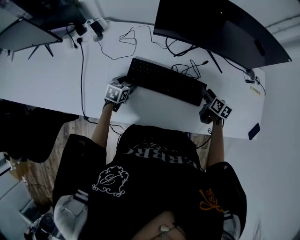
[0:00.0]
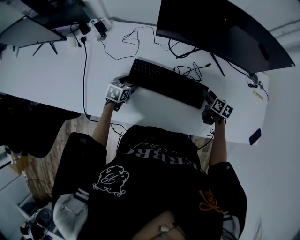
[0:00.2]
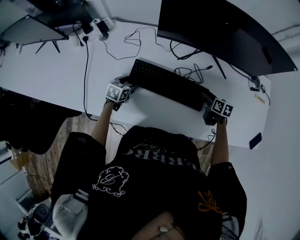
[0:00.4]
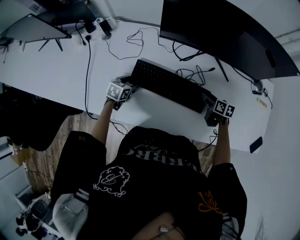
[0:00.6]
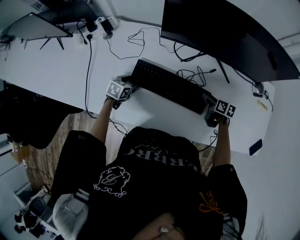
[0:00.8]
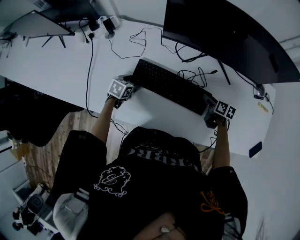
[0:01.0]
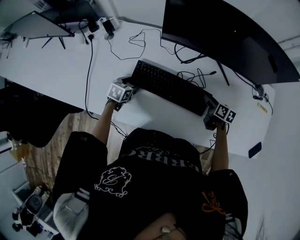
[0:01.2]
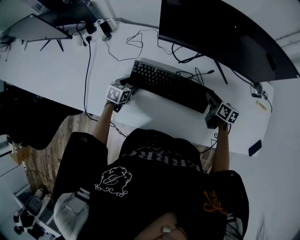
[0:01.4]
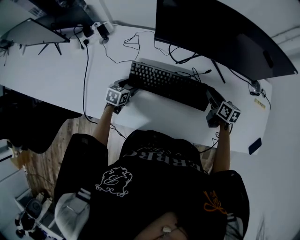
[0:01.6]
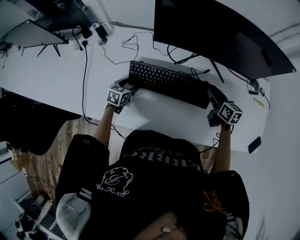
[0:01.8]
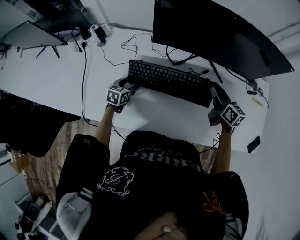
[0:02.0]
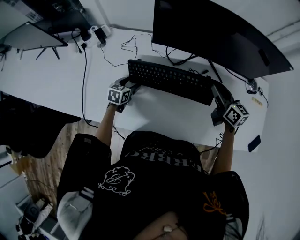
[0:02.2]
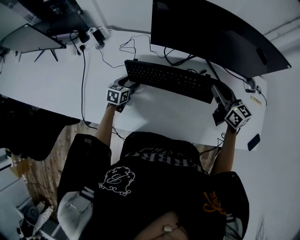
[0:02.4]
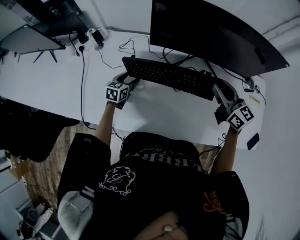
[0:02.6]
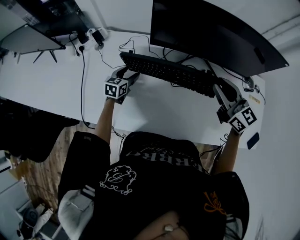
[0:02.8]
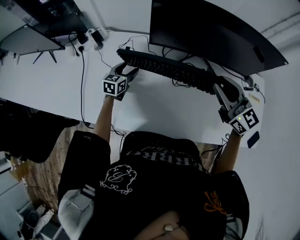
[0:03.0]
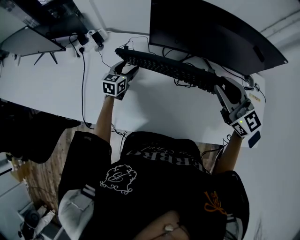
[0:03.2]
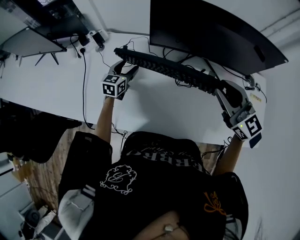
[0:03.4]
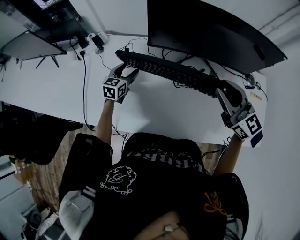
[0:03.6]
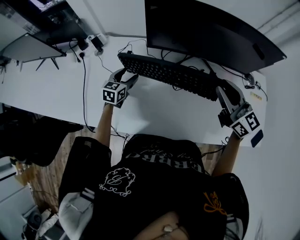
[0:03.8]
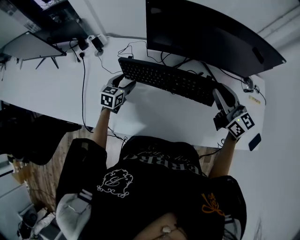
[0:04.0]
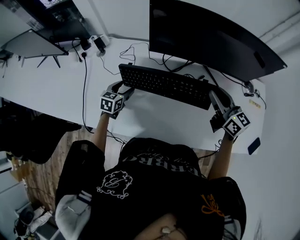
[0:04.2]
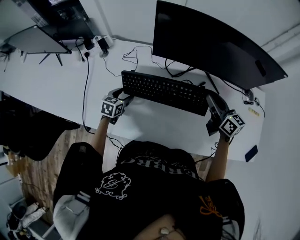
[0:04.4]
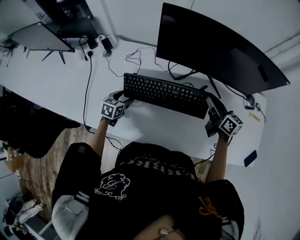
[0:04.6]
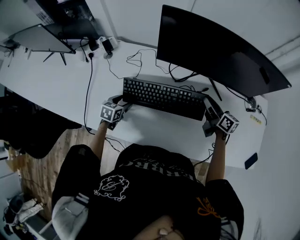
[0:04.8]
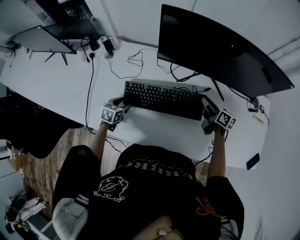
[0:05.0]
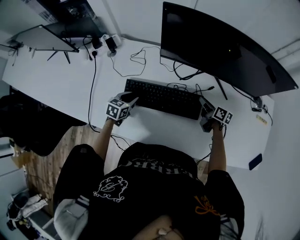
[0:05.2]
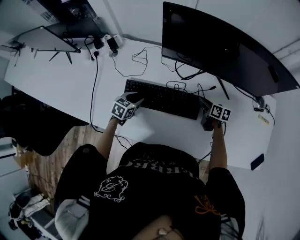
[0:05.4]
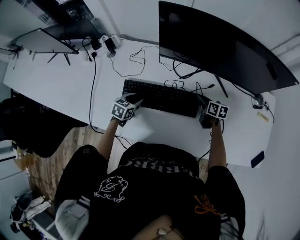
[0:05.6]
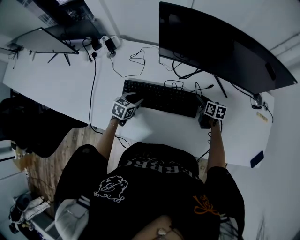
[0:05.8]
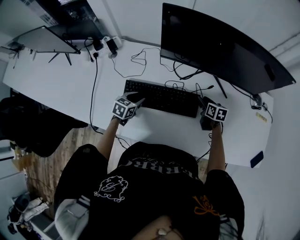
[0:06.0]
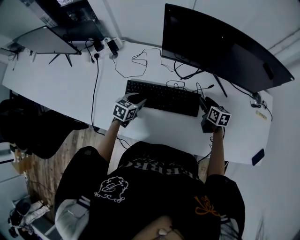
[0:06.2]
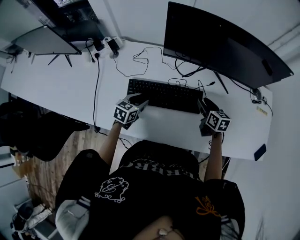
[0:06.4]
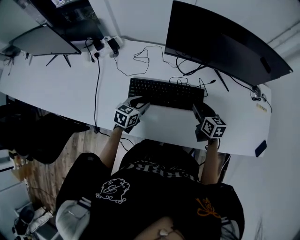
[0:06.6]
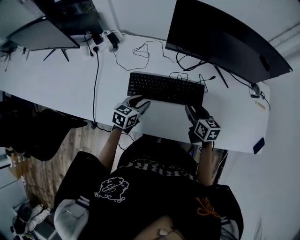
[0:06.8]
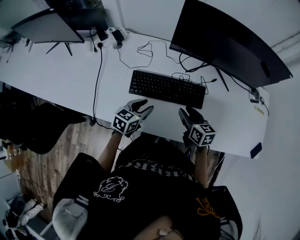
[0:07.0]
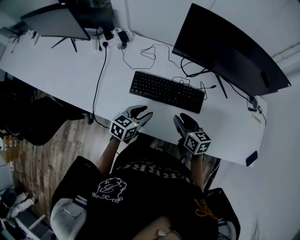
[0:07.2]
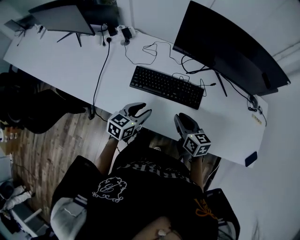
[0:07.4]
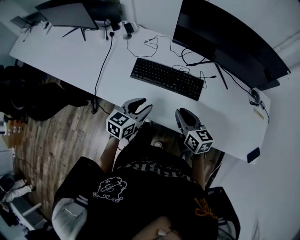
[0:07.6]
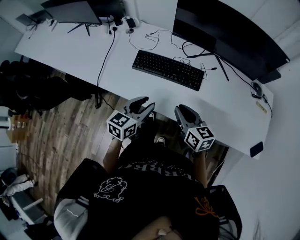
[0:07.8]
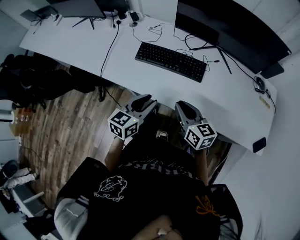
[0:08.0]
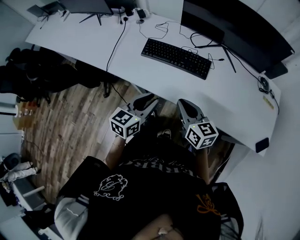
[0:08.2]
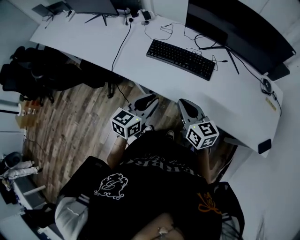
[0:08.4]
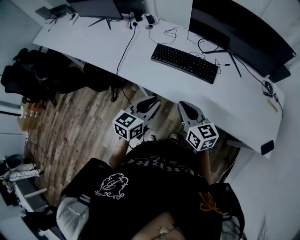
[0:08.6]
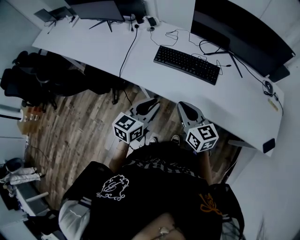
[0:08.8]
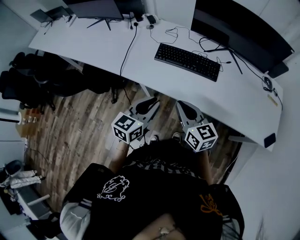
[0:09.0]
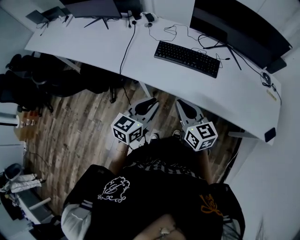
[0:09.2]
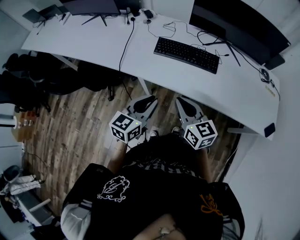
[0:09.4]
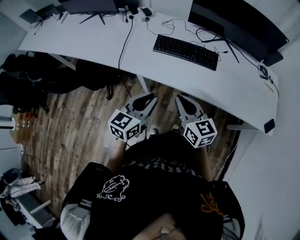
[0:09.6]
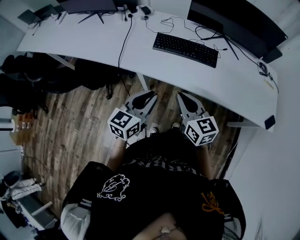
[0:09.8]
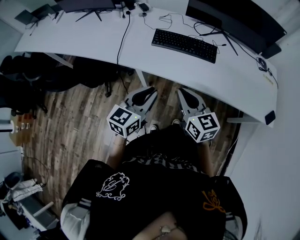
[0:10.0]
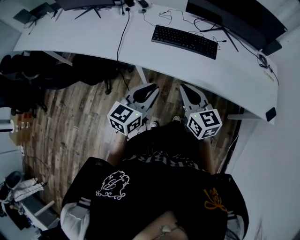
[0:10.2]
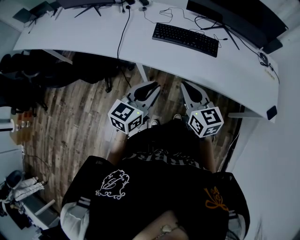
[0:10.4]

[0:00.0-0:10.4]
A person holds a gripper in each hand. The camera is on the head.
0:00.0 to 0:01.4: The grippers make only small movements.
0:01.4 to 0:03.0: The left gripper heads forward and upward, covering roughly 15 cm, and rotates some 20 degrees; the right gripper travels upward by roughly 25 cm, and rolls counterclockwise, seen from behind, by some 50 degrees.
0:03.0 to 0:04.4: The right gripper is displaced downward by roughly 10 cm, and turns by some 30 degrees. Meanwhile the left gripper heads backward, covering some 10 cm.
0:04.4 to 0:06.0: The left gripper closes up; the right gripper goes about 20 cm downward, and points its fingers approximately 30 degrees further downward.
0:06.0 to 0:07.4: The right gripper travels backward, to the left and upward by approximately 30 cm, and changes its angle by about 20 degrees, while the left gripper travels backward and upward by some 20 cm.
0:07.4 to 0:09.0: The right gripper shifts some 25 cm backward, to the left and upward; the left gripper heads backward and upward, covering roughly 25 cm.
0:09.0 to 0:10.4: The right gripper moves roughly 5 cm. The left gripper shifts approximately 5 cm backward.

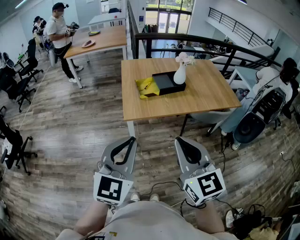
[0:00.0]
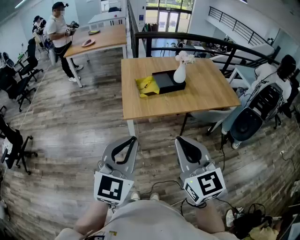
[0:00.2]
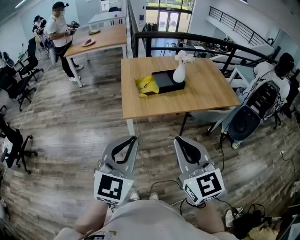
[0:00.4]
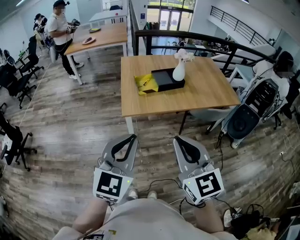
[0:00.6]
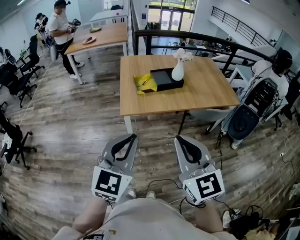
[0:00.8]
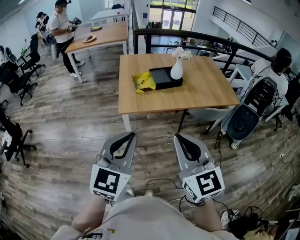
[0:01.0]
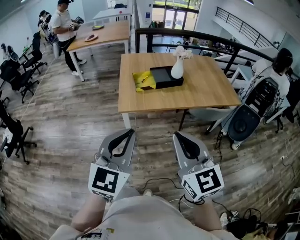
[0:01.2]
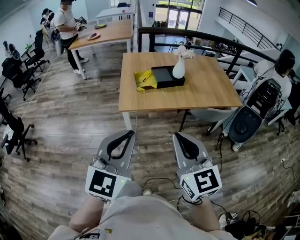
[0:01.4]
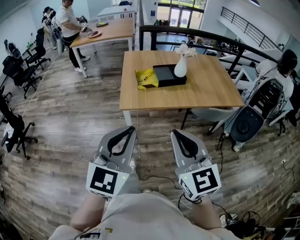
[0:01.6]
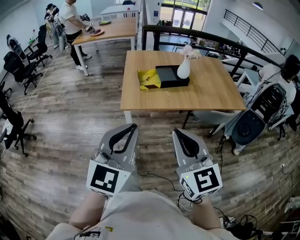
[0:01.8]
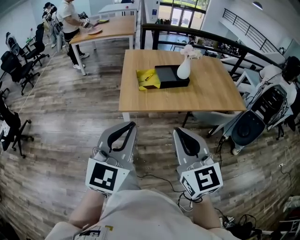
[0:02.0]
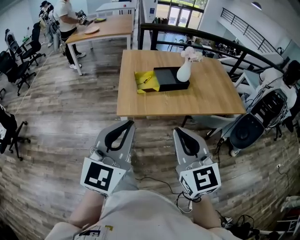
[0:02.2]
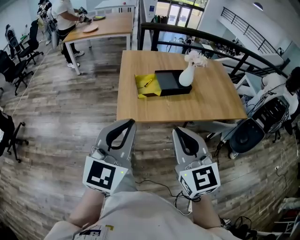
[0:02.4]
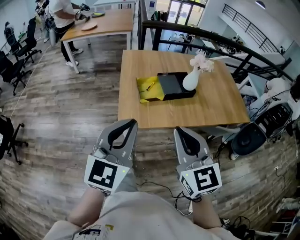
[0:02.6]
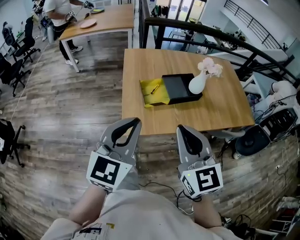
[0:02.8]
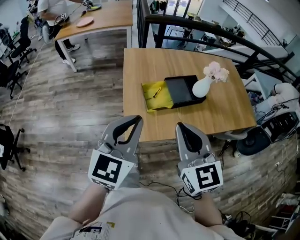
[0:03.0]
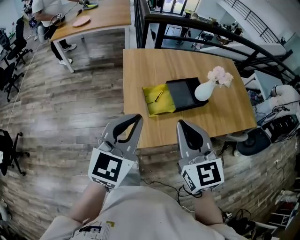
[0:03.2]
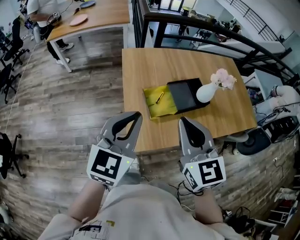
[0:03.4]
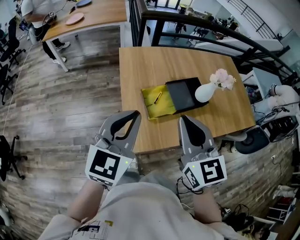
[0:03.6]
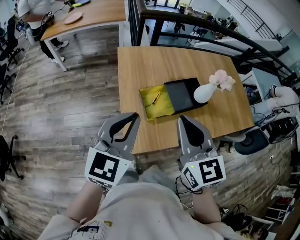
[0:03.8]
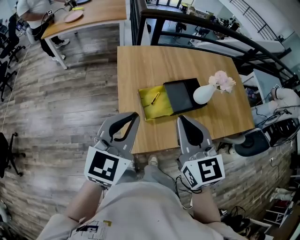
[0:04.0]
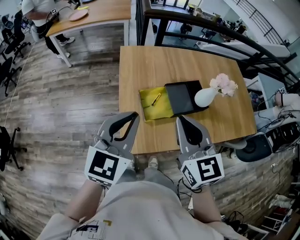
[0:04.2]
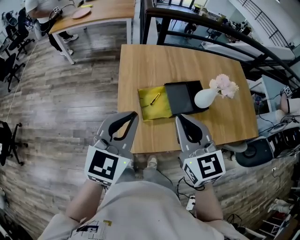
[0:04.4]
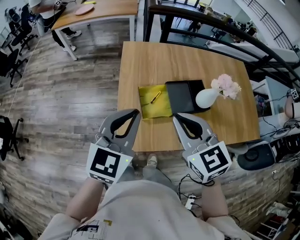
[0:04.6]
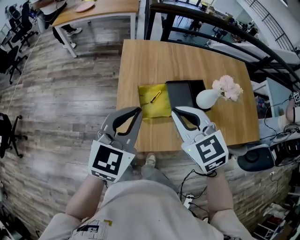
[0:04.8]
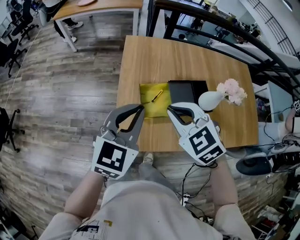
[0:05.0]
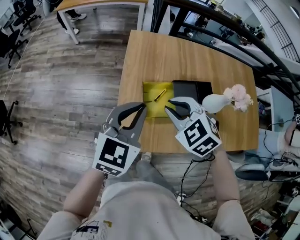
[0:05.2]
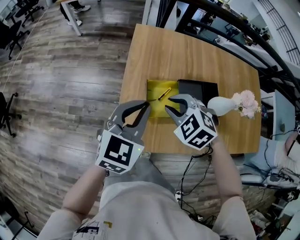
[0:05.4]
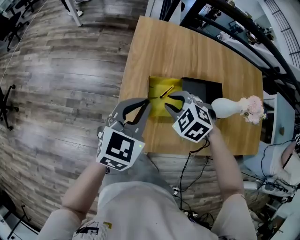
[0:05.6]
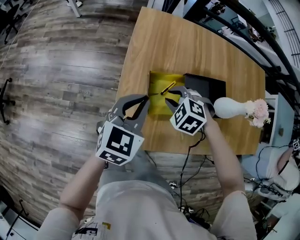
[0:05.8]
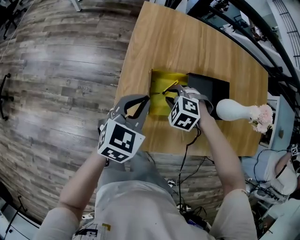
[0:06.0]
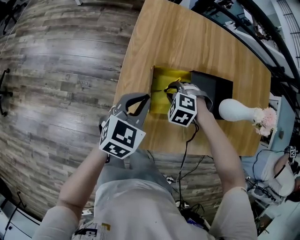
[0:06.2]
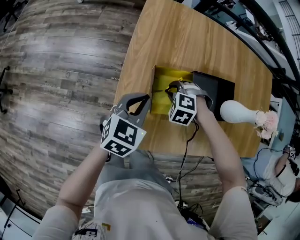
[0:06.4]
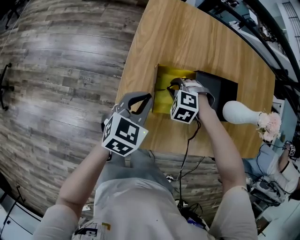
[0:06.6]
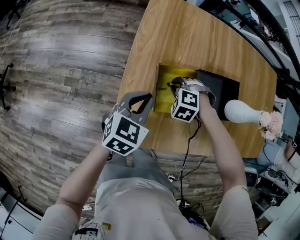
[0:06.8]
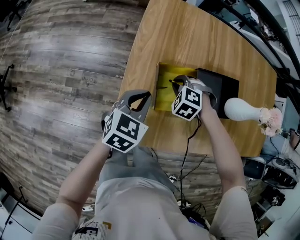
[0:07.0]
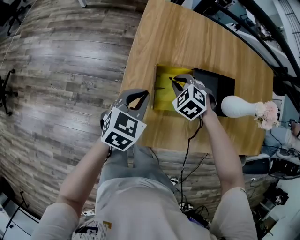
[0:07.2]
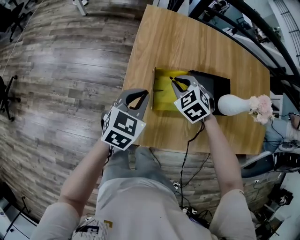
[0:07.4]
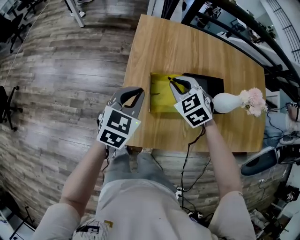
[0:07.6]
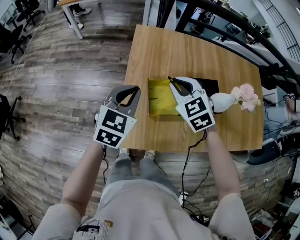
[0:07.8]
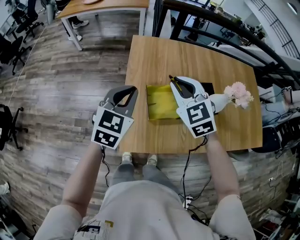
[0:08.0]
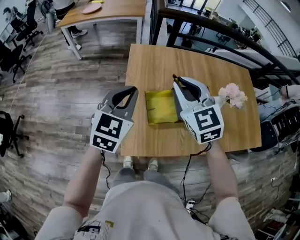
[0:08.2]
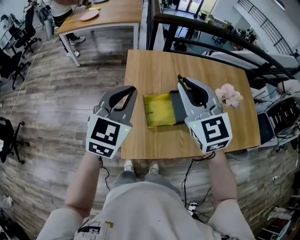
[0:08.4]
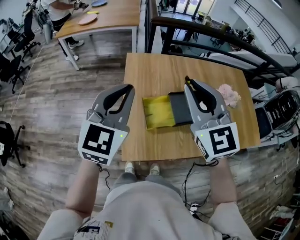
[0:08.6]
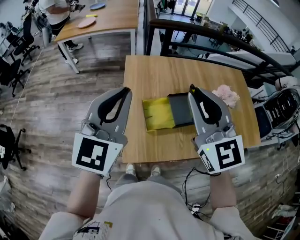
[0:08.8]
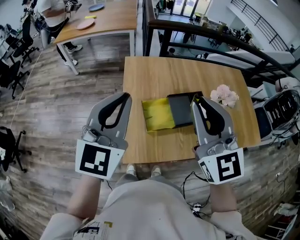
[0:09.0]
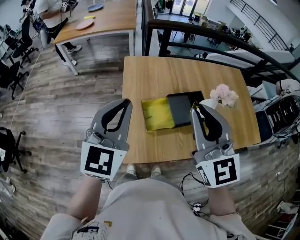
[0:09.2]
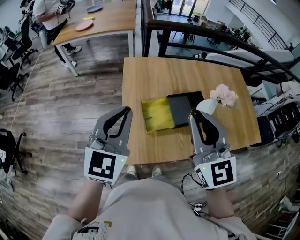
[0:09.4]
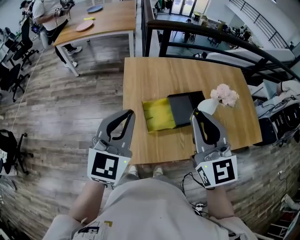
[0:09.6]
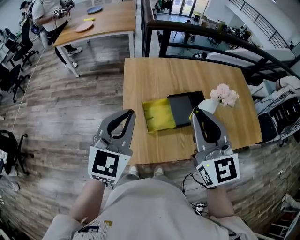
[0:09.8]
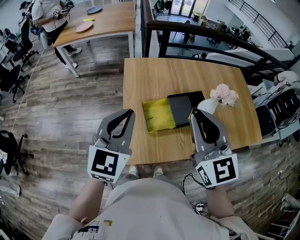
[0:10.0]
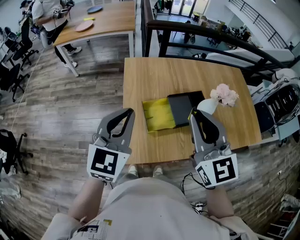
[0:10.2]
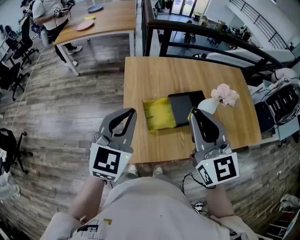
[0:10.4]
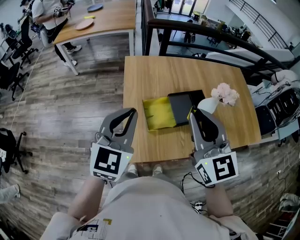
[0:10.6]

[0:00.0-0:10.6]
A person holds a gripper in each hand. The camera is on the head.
0:00.0 to 0:01.6: The grippers both shift to the right by about 5 cm.
0:01.6 to 0:03.0: The two grippers travel together, forward, some 40 cm.
0:03.0 to 0:04.6: The grippers both shift forward by about 15 cm. The right gripper changes its angle by about 20 degrees.
0:04.6 to 0:06.0: Both grippers travel together downward and forward, roughly 35 cm. The right gripper tilts its fingers approximately 50 degrees downward, and opens its fingers.
0:06.0 to 0:07.6: The left gripper moves some 5 cm. Meanwhile the right gripper shifts roughly 15 cm upward, and swivels approximately 40 degrees.
0:07.6 to 0:09.0: The right gripper is displaced upward and backward by roughly 40 cm, and points its fingers about 50 degrees further upward; the left gripper is displaced upward by roughly 30 cm, and changes its angle by roughly 30 degrees.
0:09.0 to 0:10.6: The left gripper goes some 5 cm downward. The right gripper ends up some 5 cm from where it was.

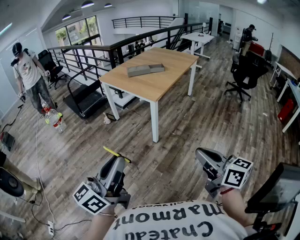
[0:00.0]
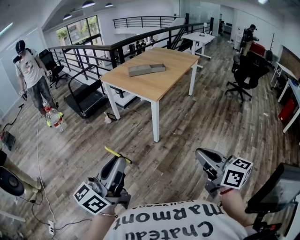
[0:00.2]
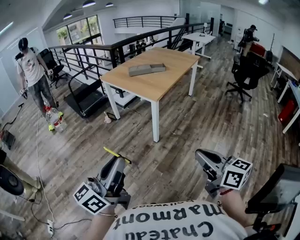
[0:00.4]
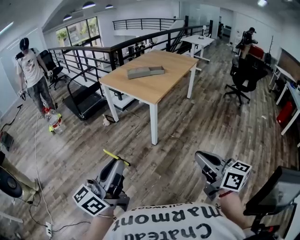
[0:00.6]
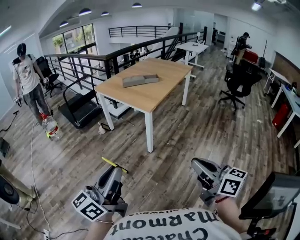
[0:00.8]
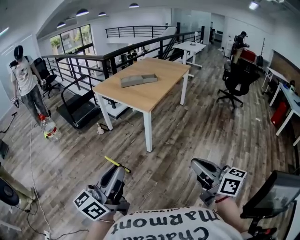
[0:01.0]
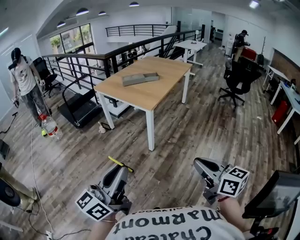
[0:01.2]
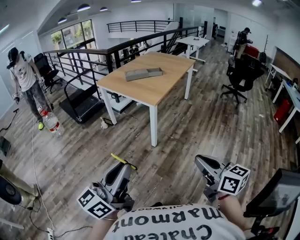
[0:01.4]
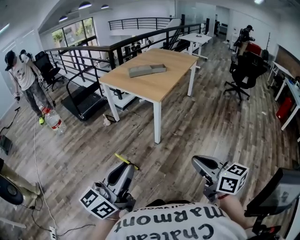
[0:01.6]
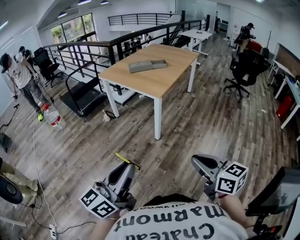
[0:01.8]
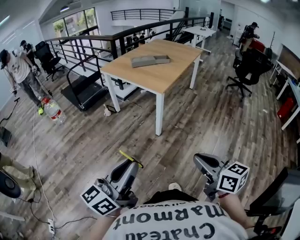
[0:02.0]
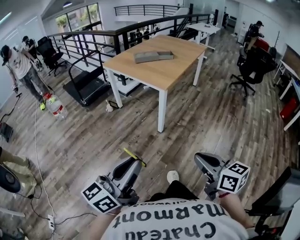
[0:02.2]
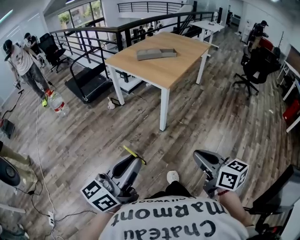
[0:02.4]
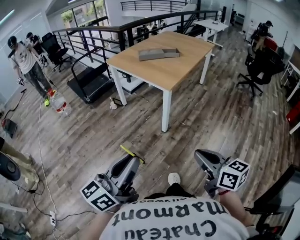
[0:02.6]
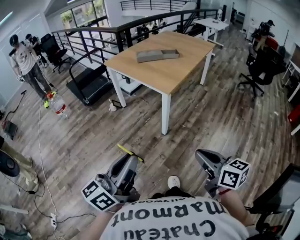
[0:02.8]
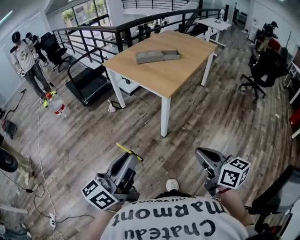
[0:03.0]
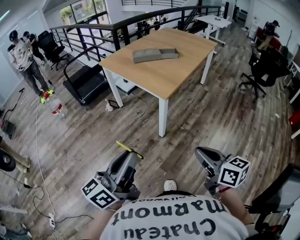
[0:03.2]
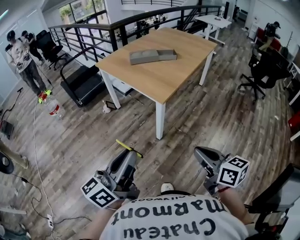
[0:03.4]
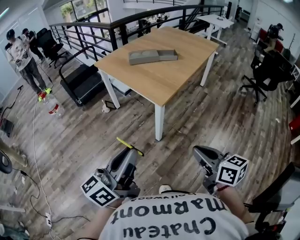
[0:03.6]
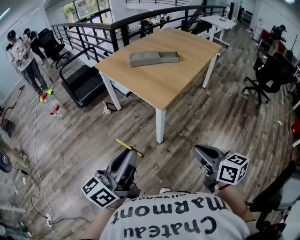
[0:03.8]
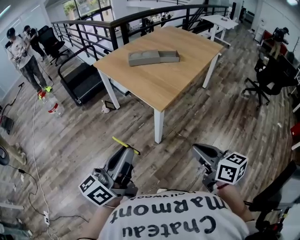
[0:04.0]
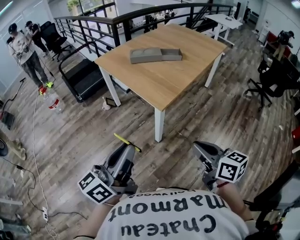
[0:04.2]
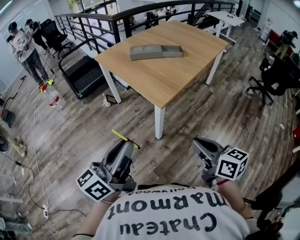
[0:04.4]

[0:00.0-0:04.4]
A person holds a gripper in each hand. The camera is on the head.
0:00.0 to 0:01.4: There are only small adjustments of the grippers.
0:01.4 to 0:03.0: The grippers both shift forward by approximately 15 cm.
0:03.0 to 0:04.4: Both grippers move forward and to the right, about 20 cm.
